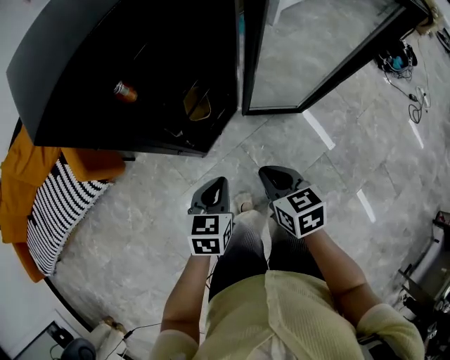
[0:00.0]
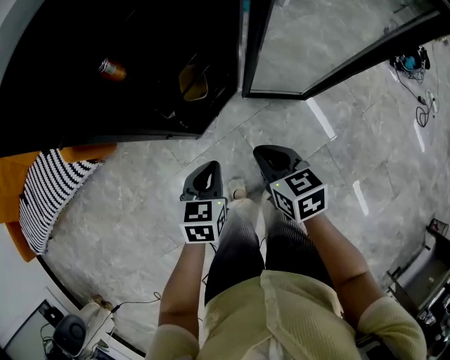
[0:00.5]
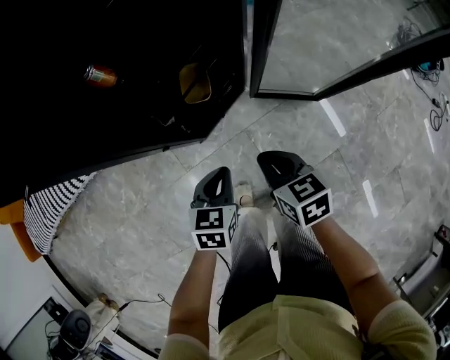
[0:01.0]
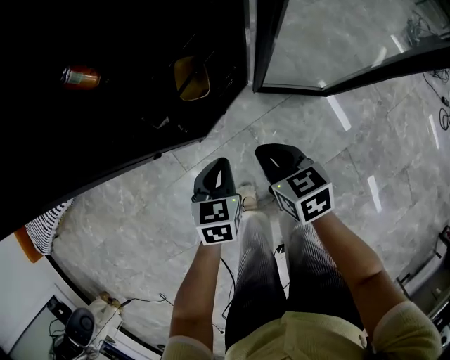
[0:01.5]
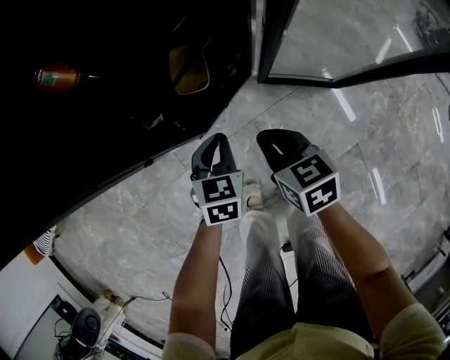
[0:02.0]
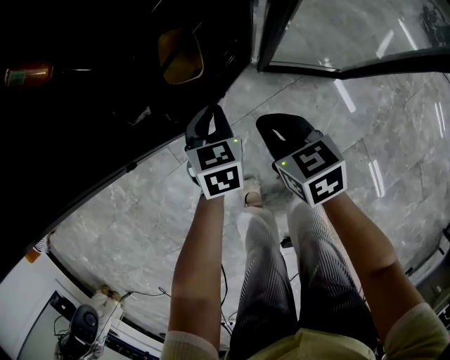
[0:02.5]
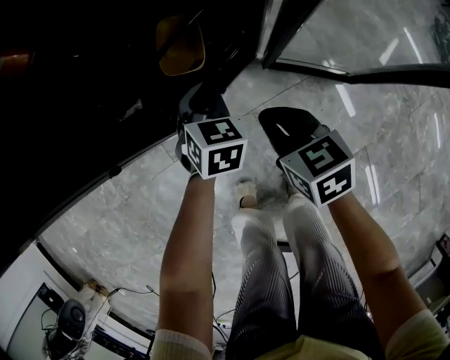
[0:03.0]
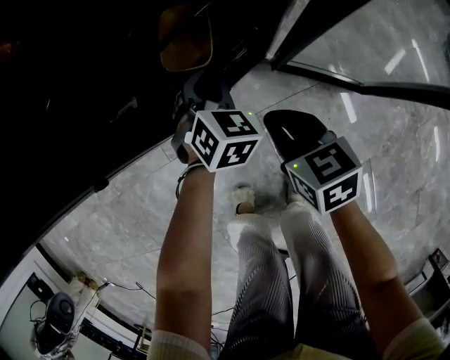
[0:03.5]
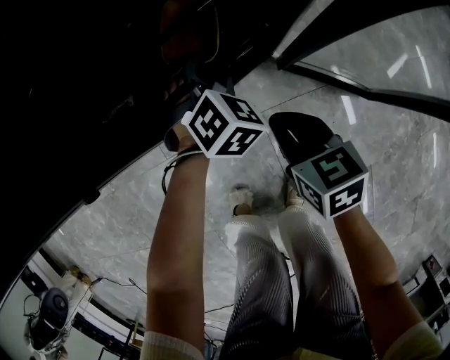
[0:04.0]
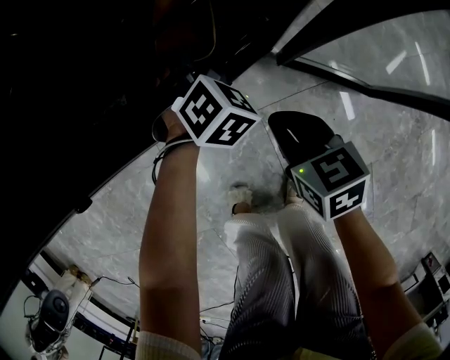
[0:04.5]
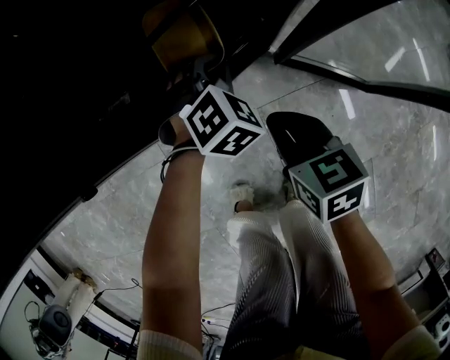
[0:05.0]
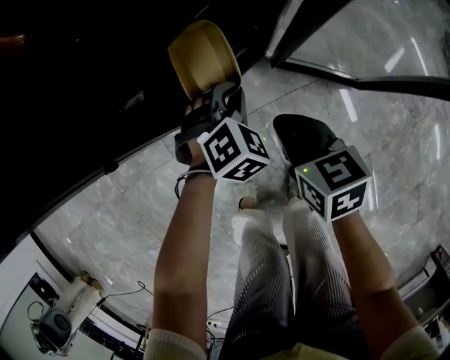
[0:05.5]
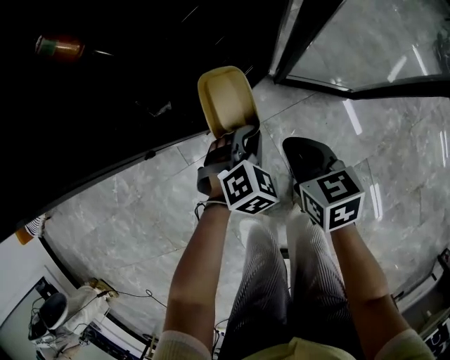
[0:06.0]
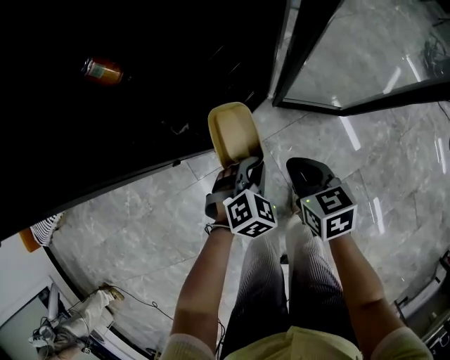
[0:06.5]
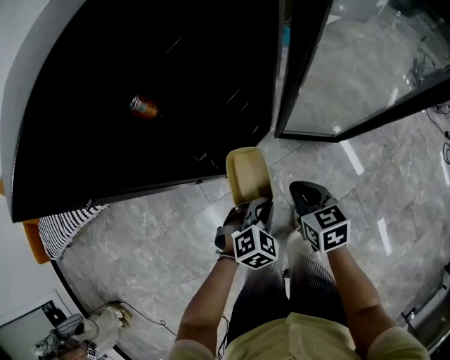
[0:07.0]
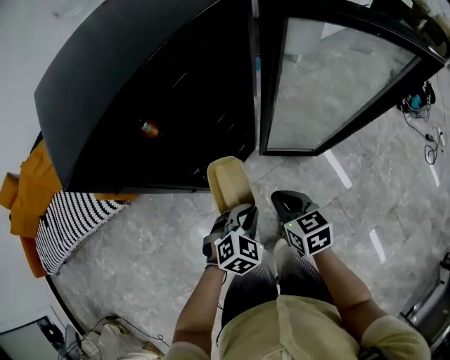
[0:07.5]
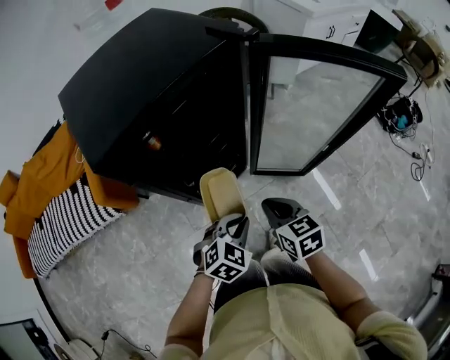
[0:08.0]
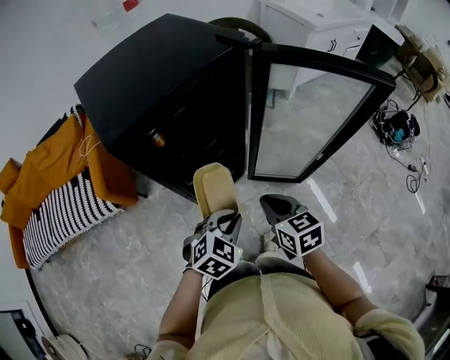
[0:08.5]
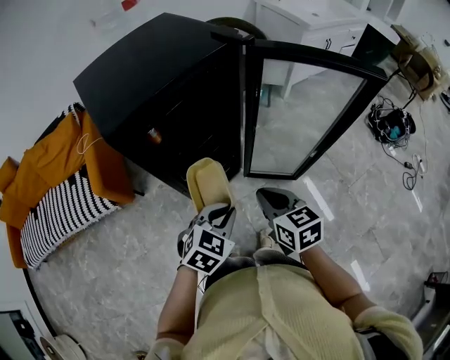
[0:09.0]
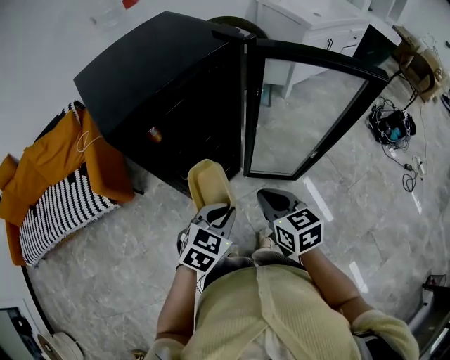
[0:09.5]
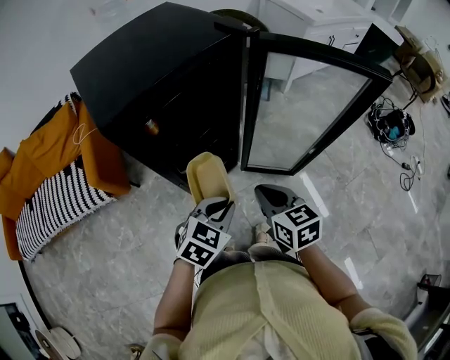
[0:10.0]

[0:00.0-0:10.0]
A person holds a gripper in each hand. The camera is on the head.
0:00.0 to 0:02.0: Both grippers move downward and forward, about 25 cm.
0:02.0 to 0:04.0: The left gripper travels forward and downward by roughly 20 cm, rotates some 30 degrees, and opens, while the right gripper goes approximately 15 cm downward.
0:04.0 to 0:06.0: The left gripper is displaced backward and upward by about 20 cm, swivels approximately 20 degrees, and closes up; the right gripper moves upward and backward, roughly 15 cm.
0:06.0 to 0:08.0: Both grippers travel together upward, approximately 30 cm.
0:08.0 to 0:10.0: The grippers both shift upward by some 5 cm.

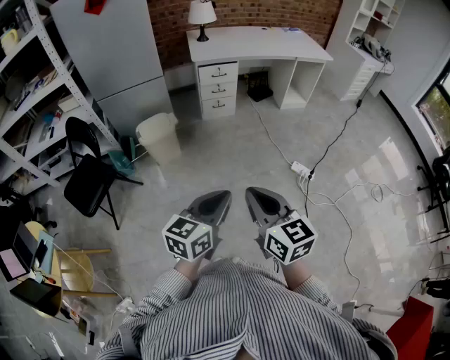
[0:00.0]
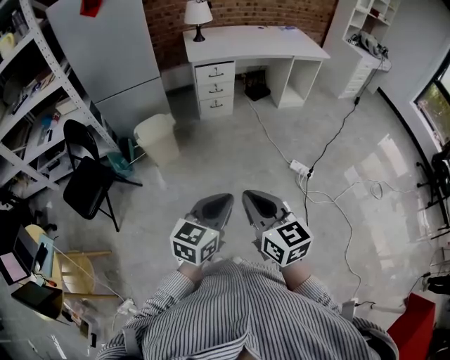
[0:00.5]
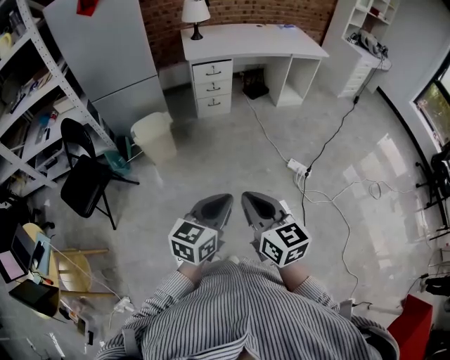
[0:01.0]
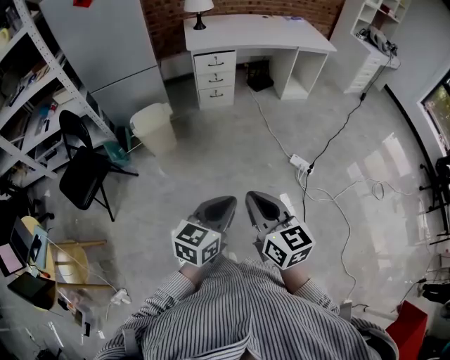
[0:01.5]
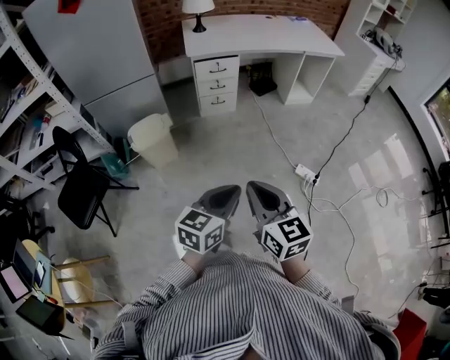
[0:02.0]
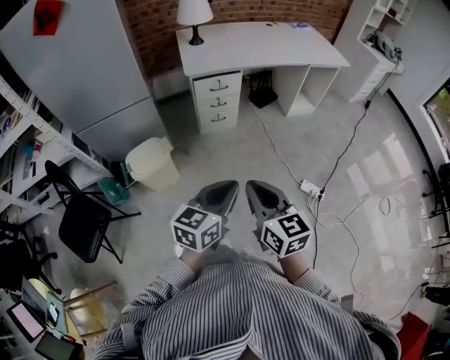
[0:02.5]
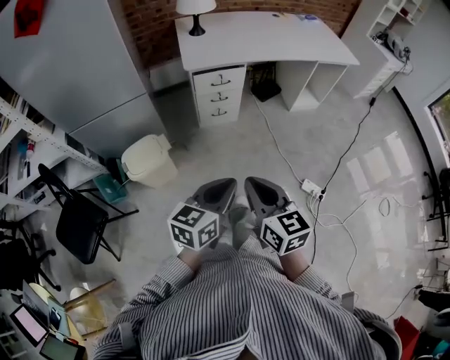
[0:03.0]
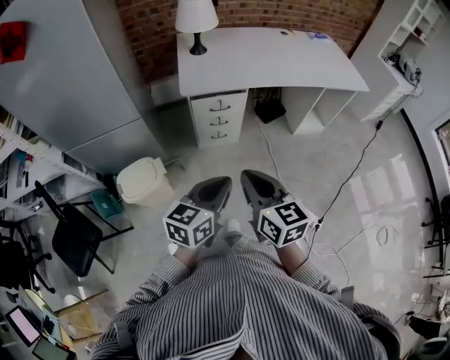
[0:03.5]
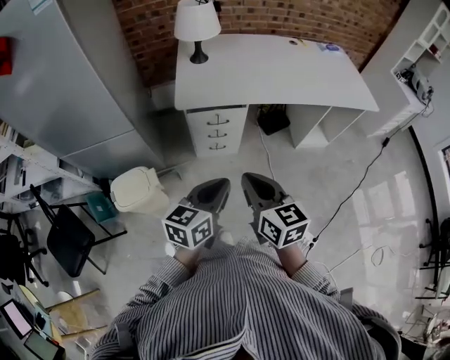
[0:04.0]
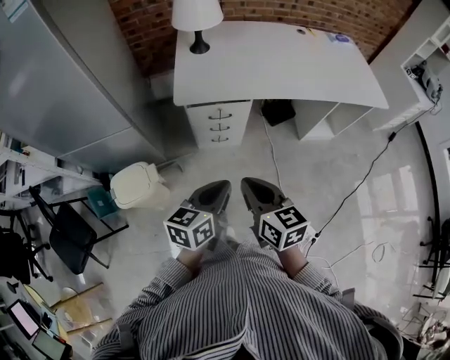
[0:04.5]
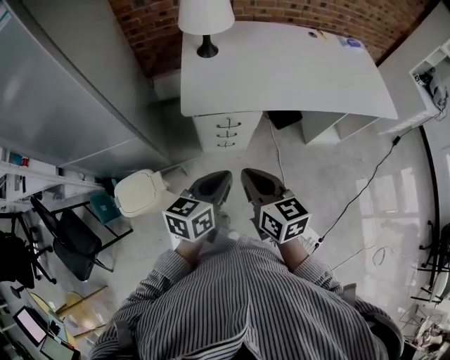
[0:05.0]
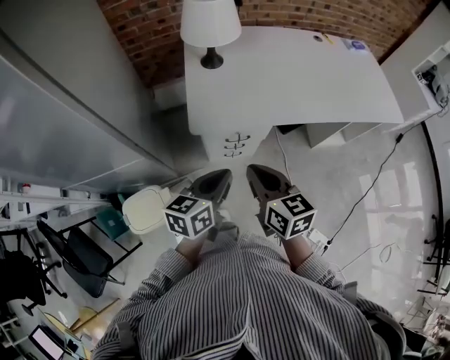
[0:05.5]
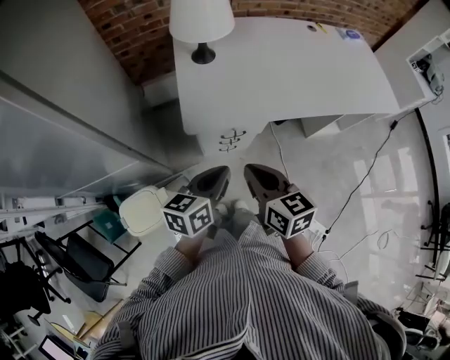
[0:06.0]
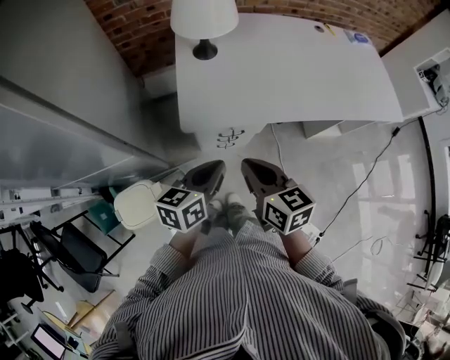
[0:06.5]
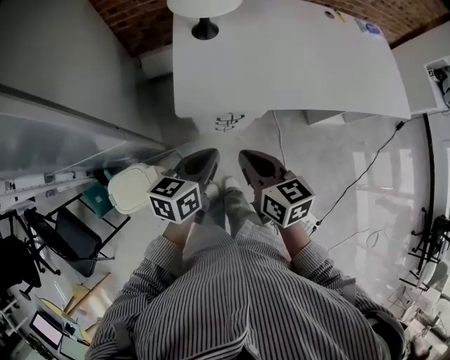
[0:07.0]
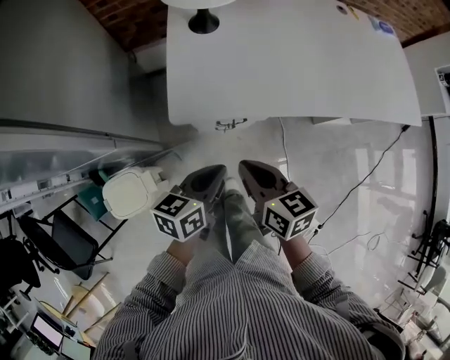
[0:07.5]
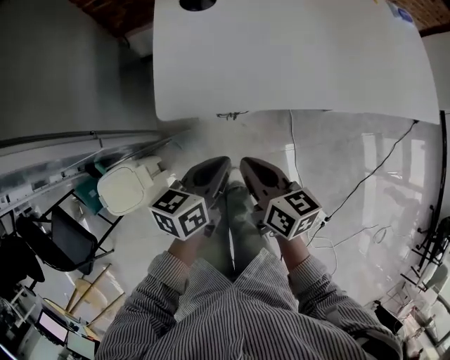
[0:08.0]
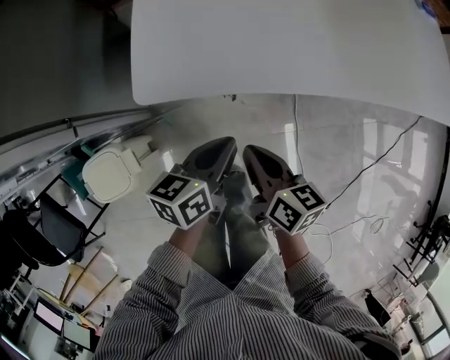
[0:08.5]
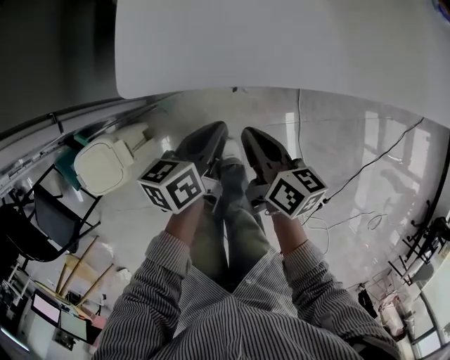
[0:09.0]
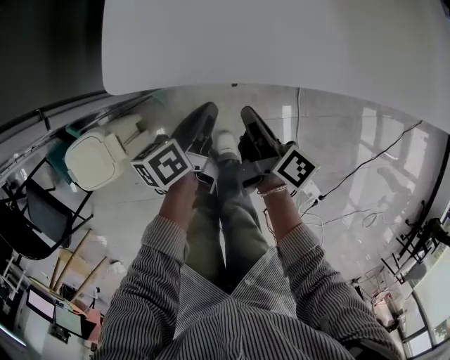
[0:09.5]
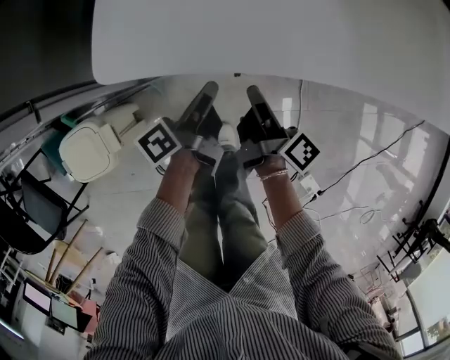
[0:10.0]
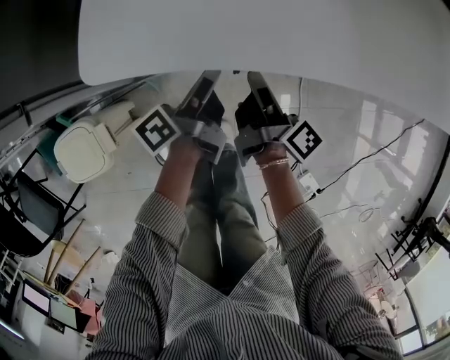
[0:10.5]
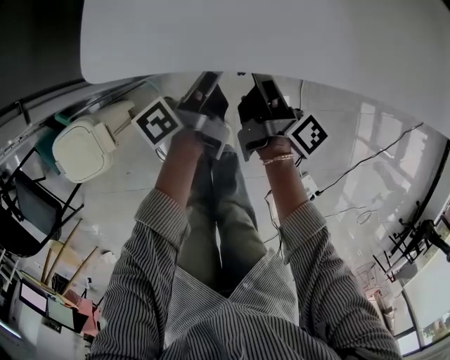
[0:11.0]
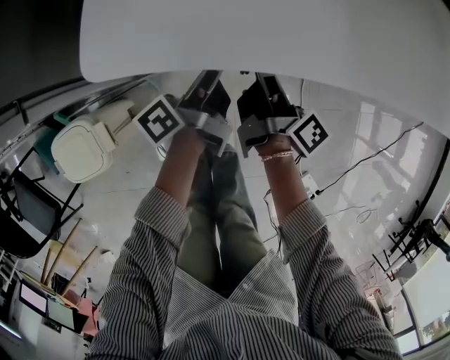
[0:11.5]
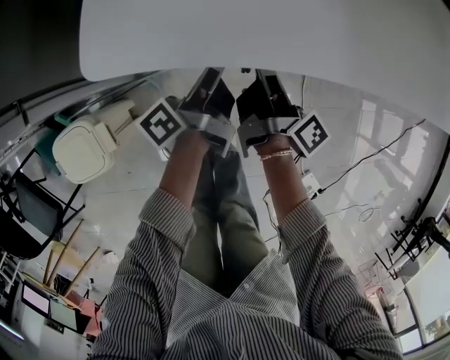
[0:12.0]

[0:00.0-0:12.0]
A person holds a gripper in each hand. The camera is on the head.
0:00.0 to 0:02.0: Both grippers move forward, roughly 15 cm.
0:02.0 to 0:04.0: The pair of grippers is taken forward, some 50 cm.
0:04.0 to 0:06.0: Both grippers move forward and to the left, about 25 cm.
0:06.0 to 0:08.0: The left gripper heads downward and forward, covering approximately 15 cm, while the right gripper shifts roughly 15 cm downward.
0:08.0 to 0:10.0: The right gripper heads downward and forward, covering approximately 20 cm, twists roughly 50 degrees clockwise, seen from behind, and opens up. The left gripper moves downward, roughly 20 cm, and twists some 50 degrees counterclockwise, seen from behind.
0:10.0 to 0:12.0: The left gripper opens and closes again.

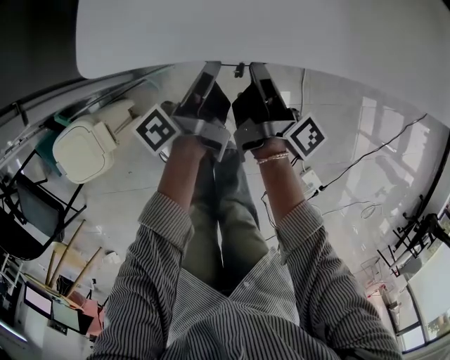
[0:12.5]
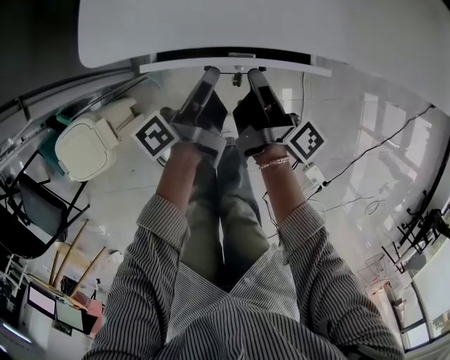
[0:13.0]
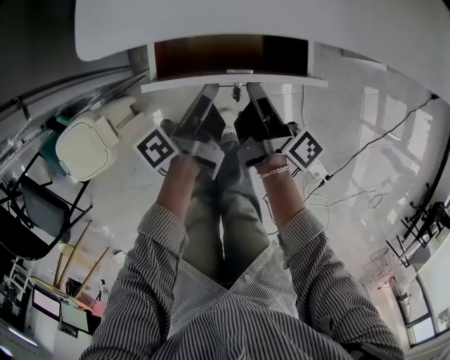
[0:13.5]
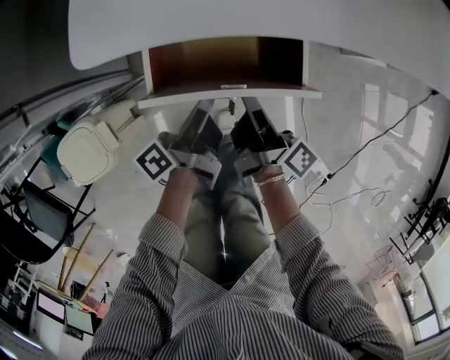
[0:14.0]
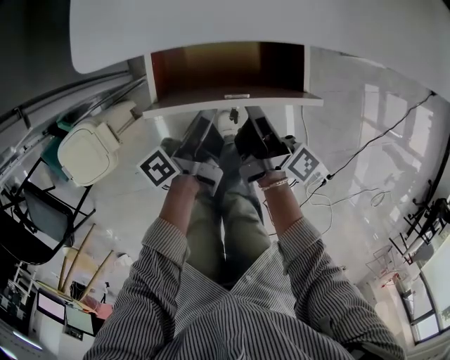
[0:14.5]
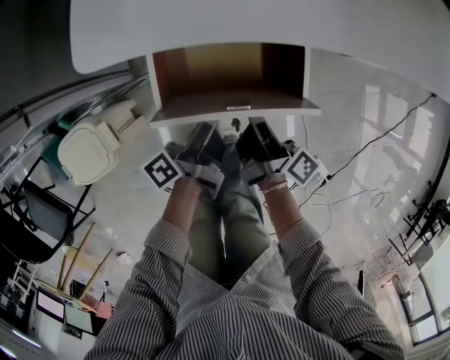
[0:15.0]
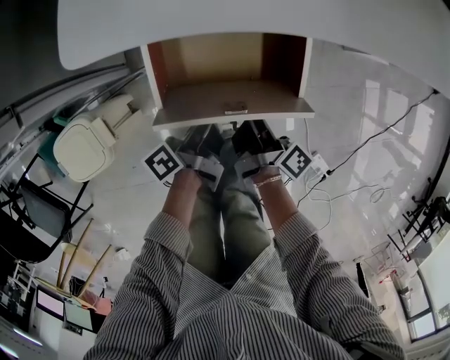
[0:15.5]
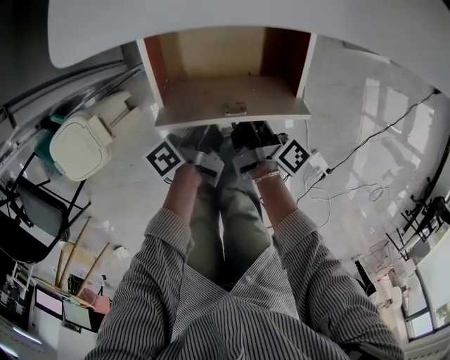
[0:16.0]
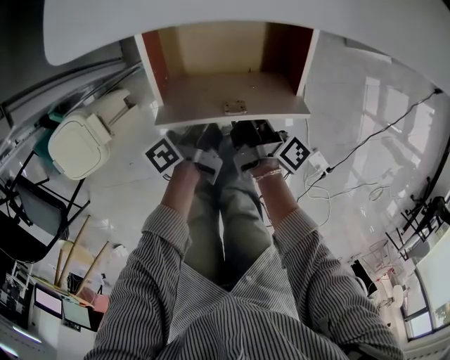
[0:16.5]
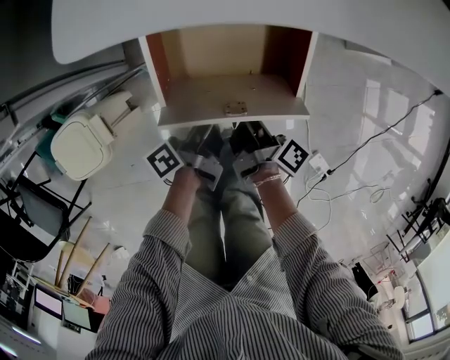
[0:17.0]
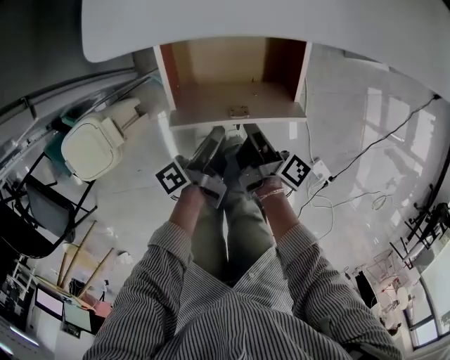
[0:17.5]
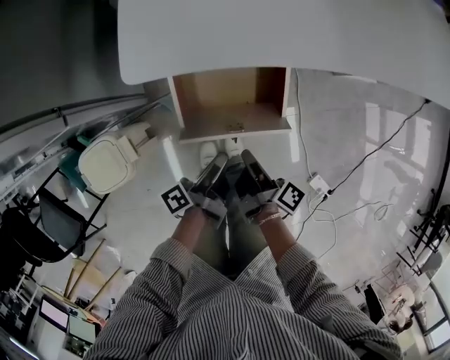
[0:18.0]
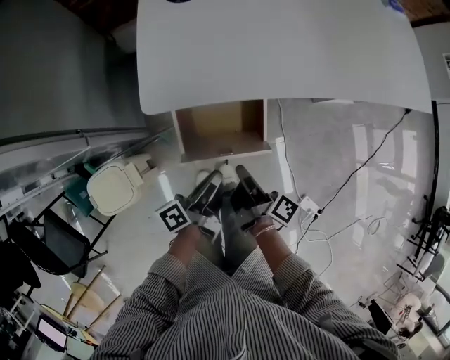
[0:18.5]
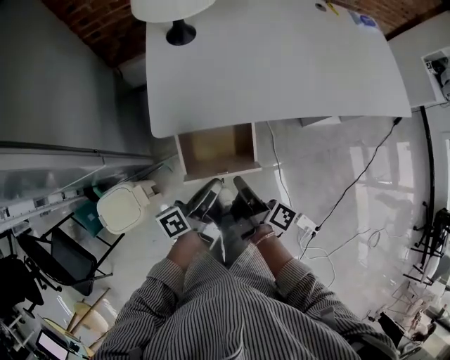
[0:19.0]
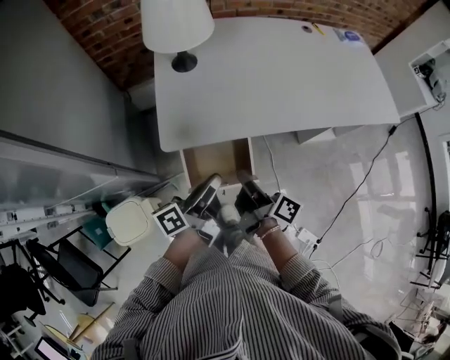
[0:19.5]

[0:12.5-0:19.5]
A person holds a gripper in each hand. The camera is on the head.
0:12.5 to 0:14.5: The grippers both shift backward by some 10 cm.
0:14.5 to 0:16.0: The two grippers go roughly 5 cm downward.
0:16.0 to 0:17.5: The left gripper ends up some 5 cm from where it was.
0:17.5 to 0:19.5: The two grippers go about 35 cm upward. The left gripper turns by approximately 30 degrees; the right gripper swivels approximately 30 degrees.
